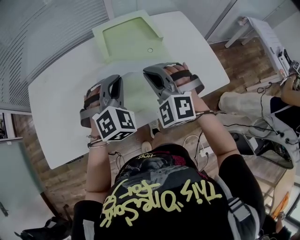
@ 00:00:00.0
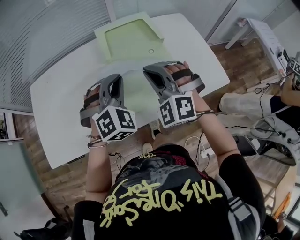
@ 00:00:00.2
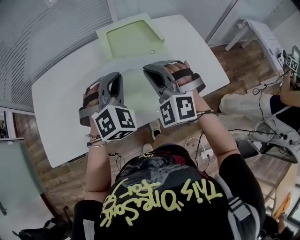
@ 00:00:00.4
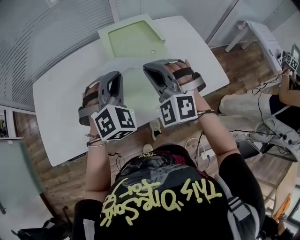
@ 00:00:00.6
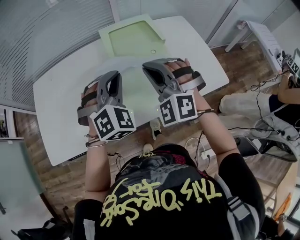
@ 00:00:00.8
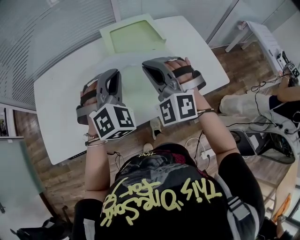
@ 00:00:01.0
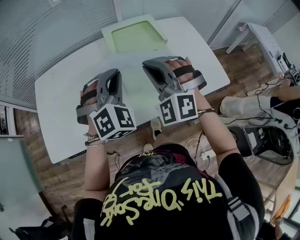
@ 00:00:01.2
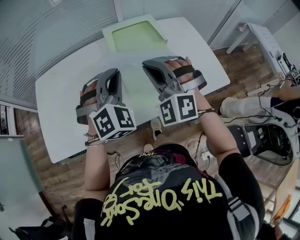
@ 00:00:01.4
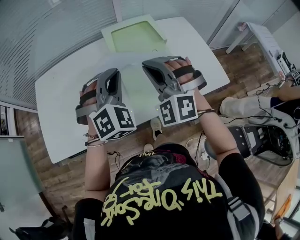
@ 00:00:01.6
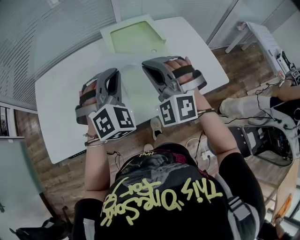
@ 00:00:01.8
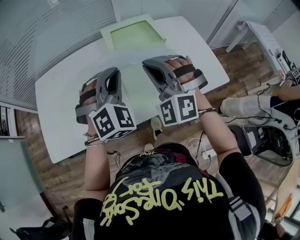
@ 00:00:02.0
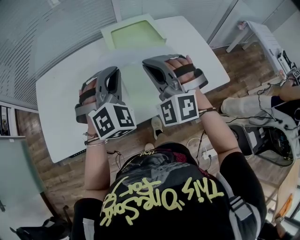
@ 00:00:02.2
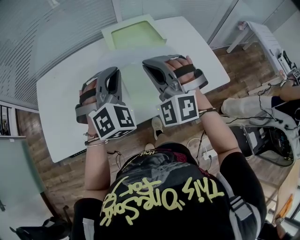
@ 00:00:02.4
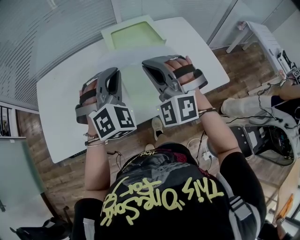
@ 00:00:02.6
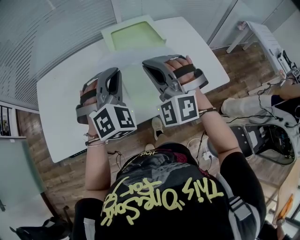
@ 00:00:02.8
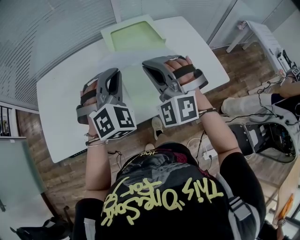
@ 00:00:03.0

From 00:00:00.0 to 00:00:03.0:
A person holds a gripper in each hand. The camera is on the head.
From 00:00:00.0 to 00:00:01.6: The two grippers go about 5 cm upward.
From 00:00:01.6 to 00:00:03.0: Both grippers stay put.

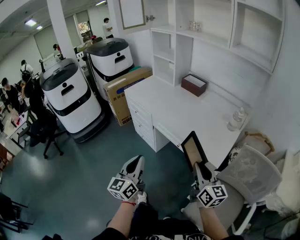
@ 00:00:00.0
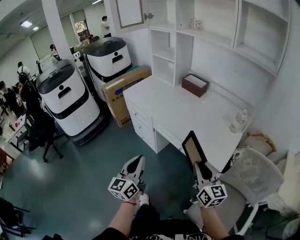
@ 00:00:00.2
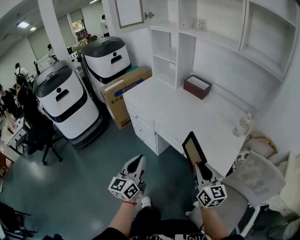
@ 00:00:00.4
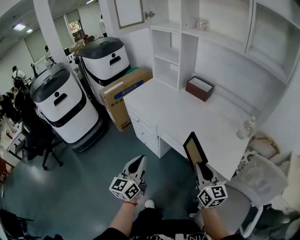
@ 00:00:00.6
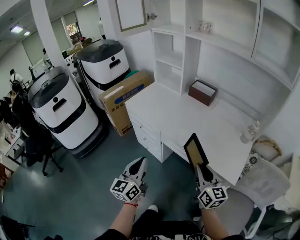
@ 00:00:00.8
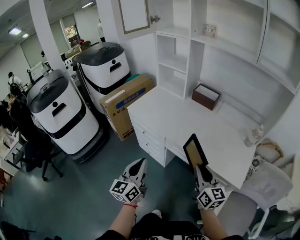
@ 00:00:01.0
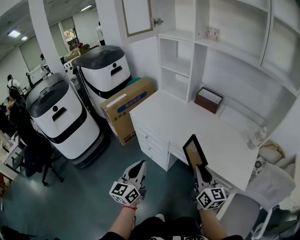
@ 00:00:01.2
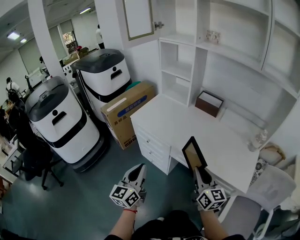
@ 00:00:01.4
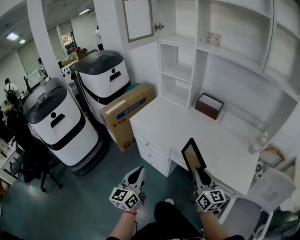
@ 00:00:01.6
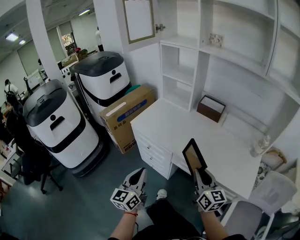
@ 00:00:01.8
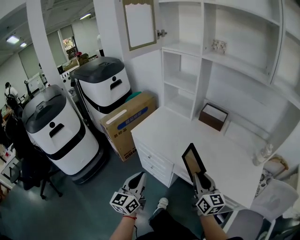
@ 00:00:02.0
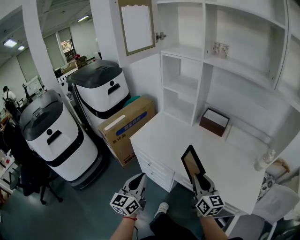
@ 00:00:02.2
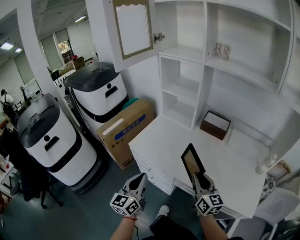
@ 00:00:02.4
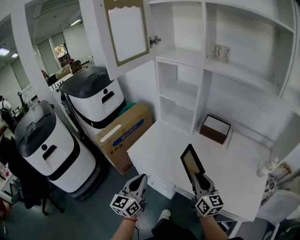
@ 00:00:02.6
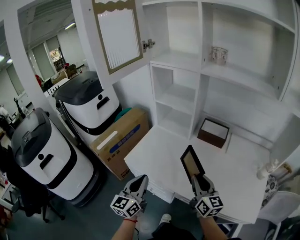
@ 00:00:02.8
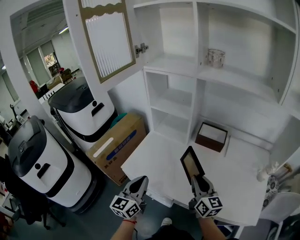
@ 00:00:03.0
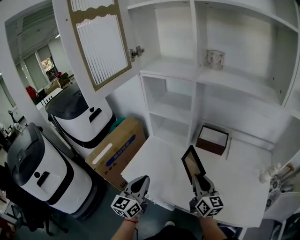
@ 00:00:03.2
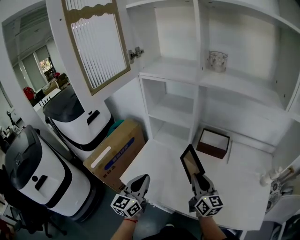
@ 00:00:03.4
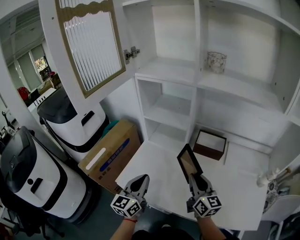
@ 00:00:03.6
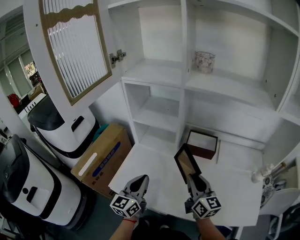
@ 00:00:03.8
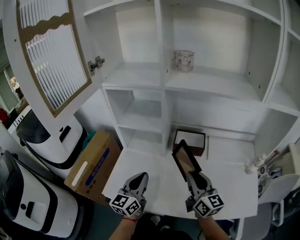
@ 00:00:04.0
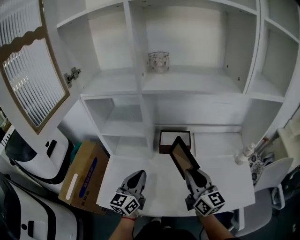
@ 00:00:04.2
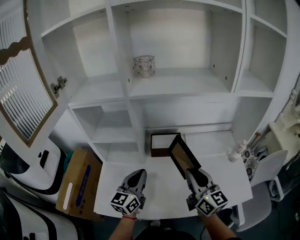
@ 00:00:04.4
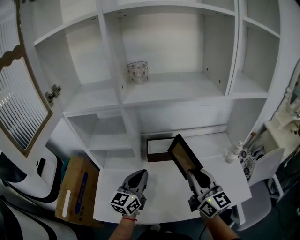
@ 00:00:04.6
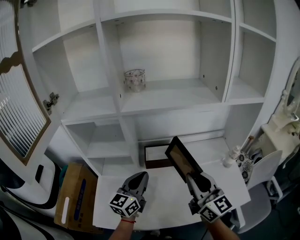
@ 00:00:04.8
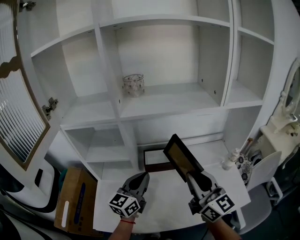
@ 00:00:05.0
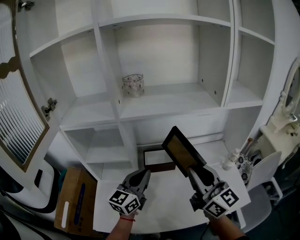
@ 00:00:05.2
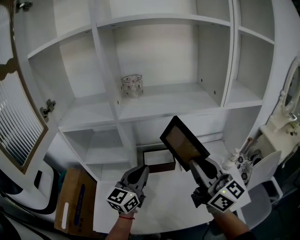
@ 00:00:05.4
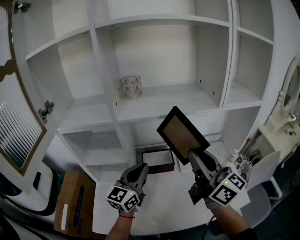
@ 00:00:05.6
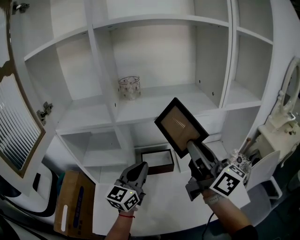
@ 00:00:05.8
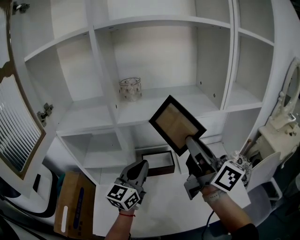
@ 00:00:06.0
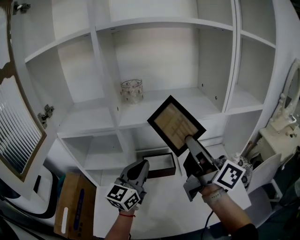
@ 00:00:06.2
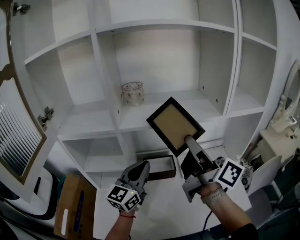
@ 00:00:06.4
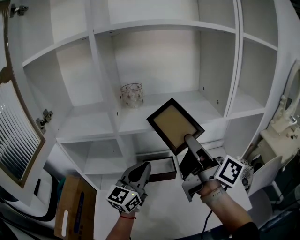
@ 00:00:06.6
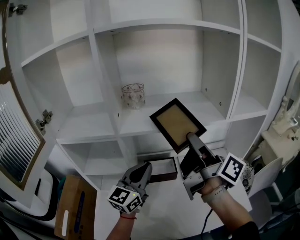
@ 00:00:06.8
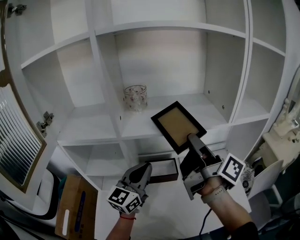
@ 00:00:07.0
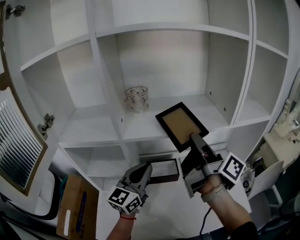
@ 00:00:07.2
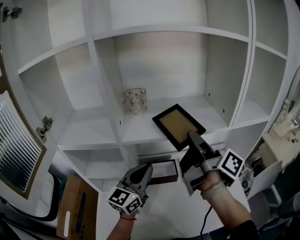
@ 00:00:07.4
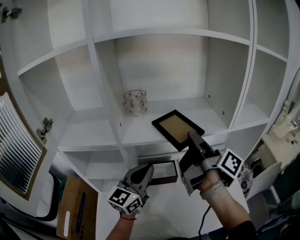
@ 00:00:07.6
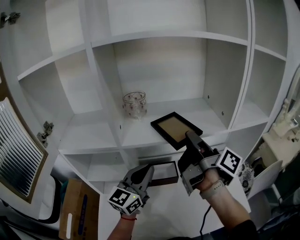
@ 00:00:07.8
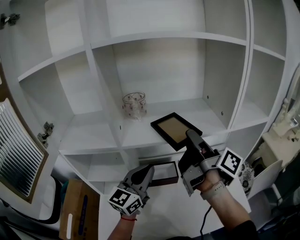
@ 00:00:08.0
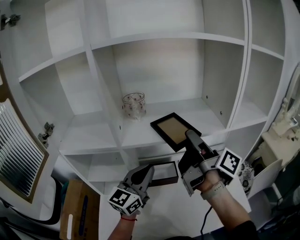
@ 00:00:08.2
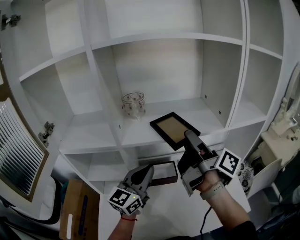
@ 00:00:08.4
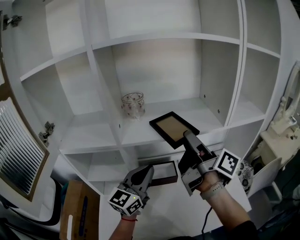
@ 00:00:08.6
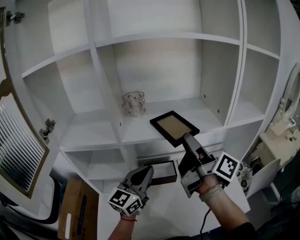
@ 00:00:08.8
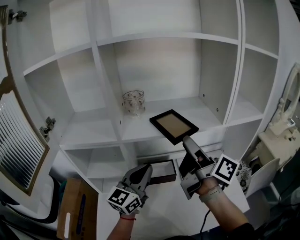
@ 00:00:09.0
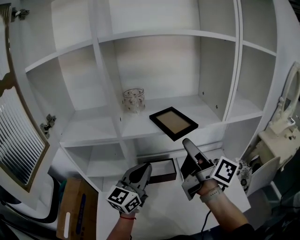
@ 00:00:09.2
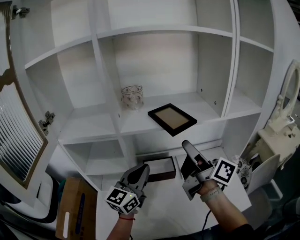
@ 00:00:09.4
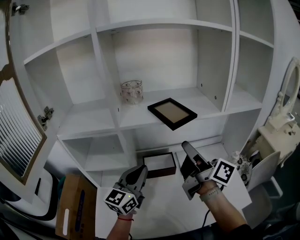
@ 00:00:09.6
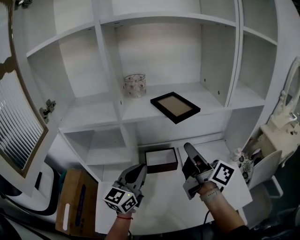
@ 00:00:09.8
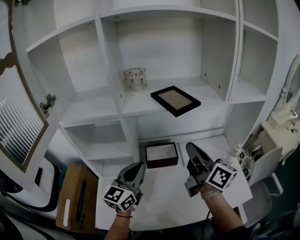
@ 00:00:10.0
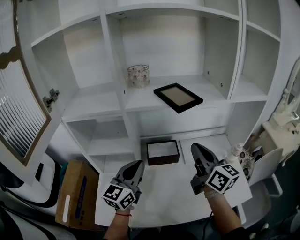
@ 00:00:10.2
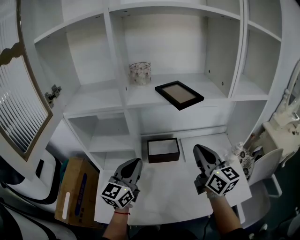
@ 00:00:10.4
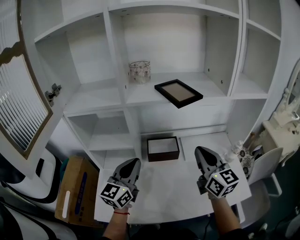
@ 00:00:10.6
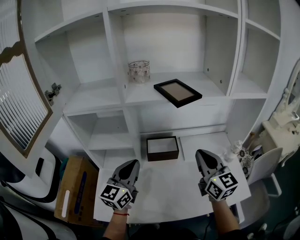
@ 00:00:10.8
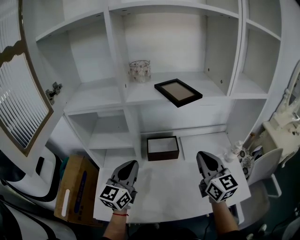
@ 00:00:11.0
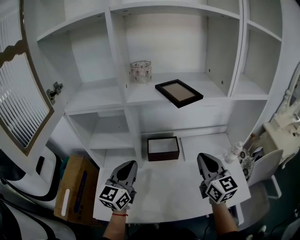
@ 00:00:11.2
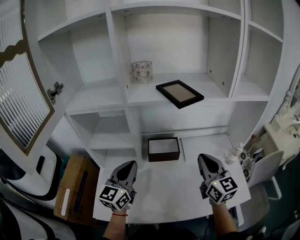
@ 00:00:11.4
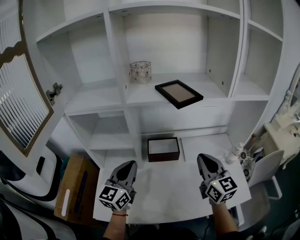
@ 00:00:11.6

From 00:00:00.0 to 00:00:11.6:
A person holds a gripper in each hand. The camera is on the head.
From 00:00:00.0 to 00:00:01.4: The two grippers go about 30 cm forward and to the left.
From 00:00:01.4 to 00:00:02.8: The grippers both shift forward by about 25 cm.
From 00:00:02.8 to 00:00:04.4: The left gripper shifts by roughly 25 cm, and rotates approximately 30 degrees, while the right gripper ends up roughly 15 cm from where it was, and turns by some 30 degrees.
From 00:00:04.4 to 00:00:05.8: The left gripper goes some 15 cm upward and forward, while the right gripper goes roughly 20 cm upward, and changes its angle by about 20 degrees.
From 00:00:05.8 to 00:00:07.2: The right gripper travels forward by roughly 10 cm, and rotates around the line of its fingers by about 40 degrees, clockwise from behind; the left gripper shifts by approximately 5 cm.
From 00:00:07.2 to 00:00:08.8: The right gripper opens.
From 00:00:08.8 to 00:00:10.2: Both grippers move downward and backward, some 10 cm. The right gripper rotates around the line of its fingers by about 40 degrees, counterclockwise from behind, and closes.
From 00:00:10.2 to 00:00:11.6: The right gripper heads downward, covering about 5 cm, and changes its angle by about 20 degrees.

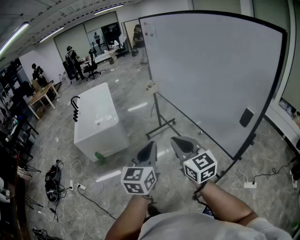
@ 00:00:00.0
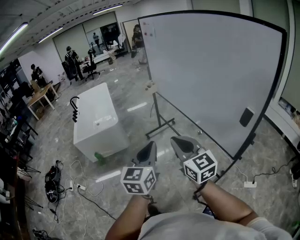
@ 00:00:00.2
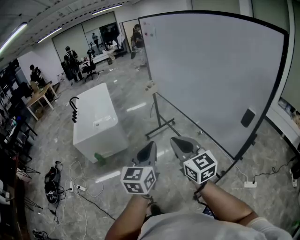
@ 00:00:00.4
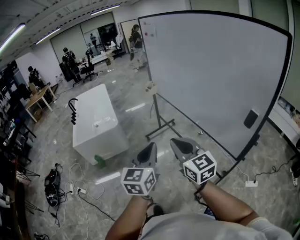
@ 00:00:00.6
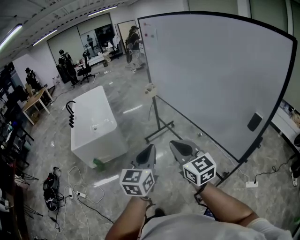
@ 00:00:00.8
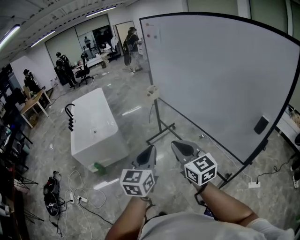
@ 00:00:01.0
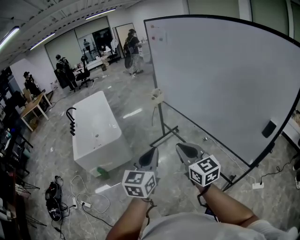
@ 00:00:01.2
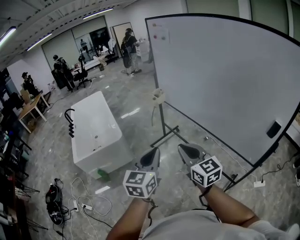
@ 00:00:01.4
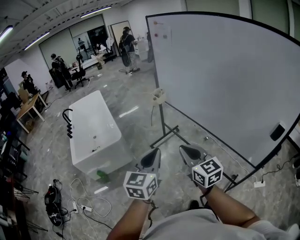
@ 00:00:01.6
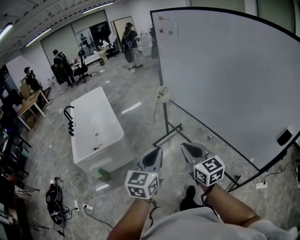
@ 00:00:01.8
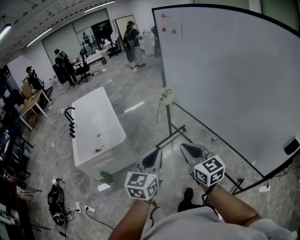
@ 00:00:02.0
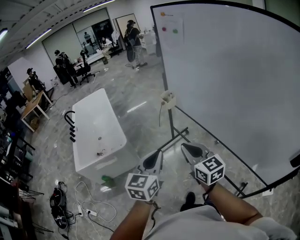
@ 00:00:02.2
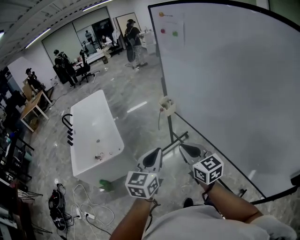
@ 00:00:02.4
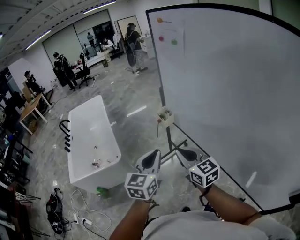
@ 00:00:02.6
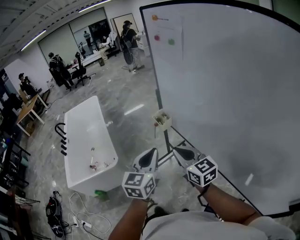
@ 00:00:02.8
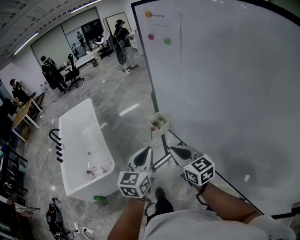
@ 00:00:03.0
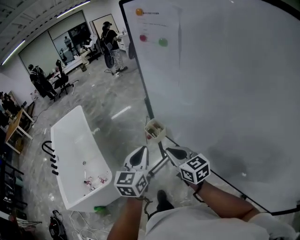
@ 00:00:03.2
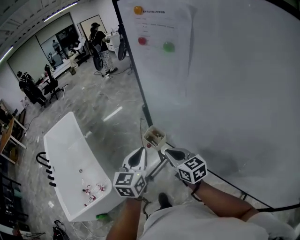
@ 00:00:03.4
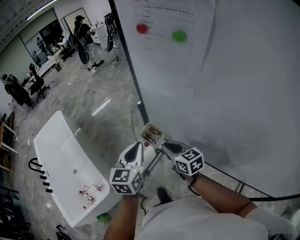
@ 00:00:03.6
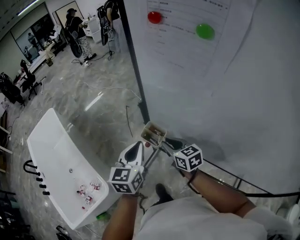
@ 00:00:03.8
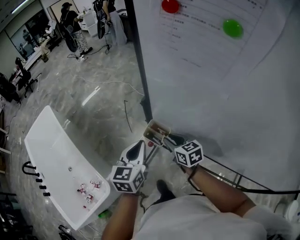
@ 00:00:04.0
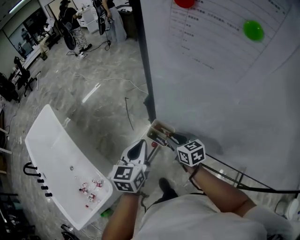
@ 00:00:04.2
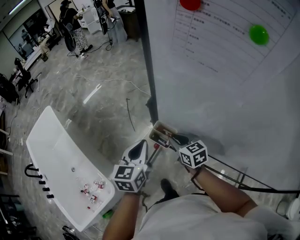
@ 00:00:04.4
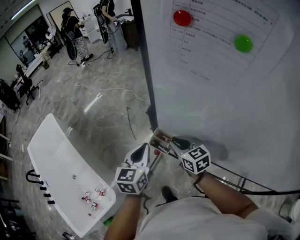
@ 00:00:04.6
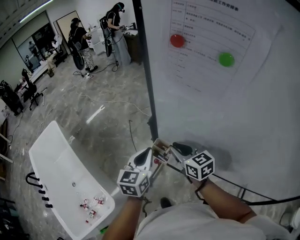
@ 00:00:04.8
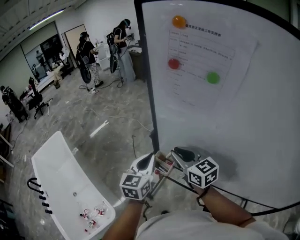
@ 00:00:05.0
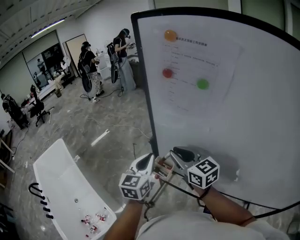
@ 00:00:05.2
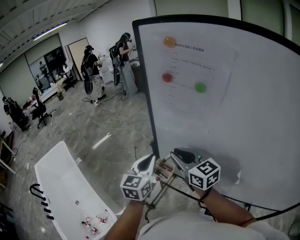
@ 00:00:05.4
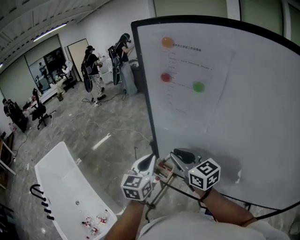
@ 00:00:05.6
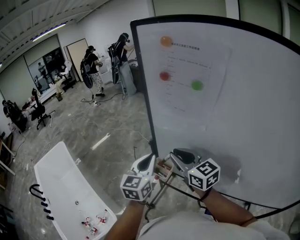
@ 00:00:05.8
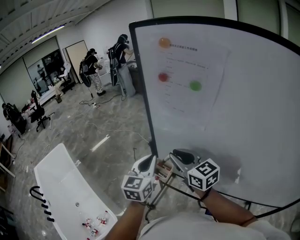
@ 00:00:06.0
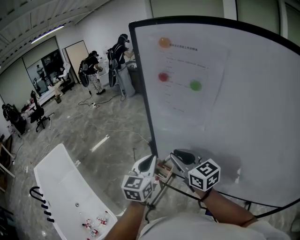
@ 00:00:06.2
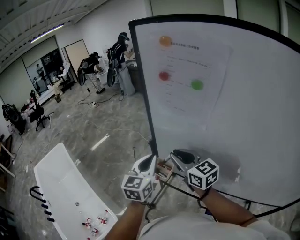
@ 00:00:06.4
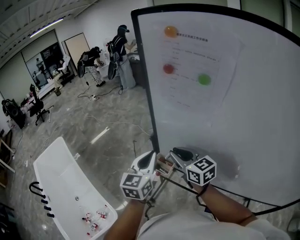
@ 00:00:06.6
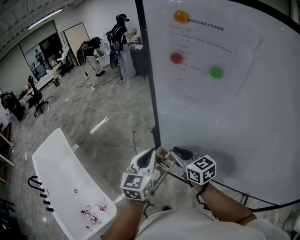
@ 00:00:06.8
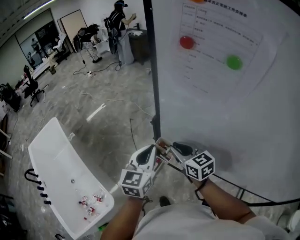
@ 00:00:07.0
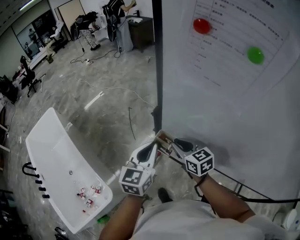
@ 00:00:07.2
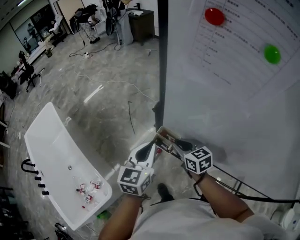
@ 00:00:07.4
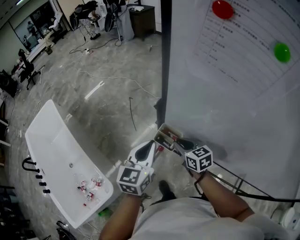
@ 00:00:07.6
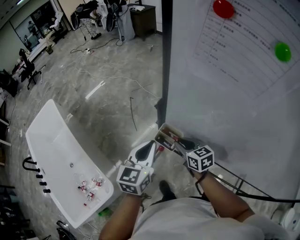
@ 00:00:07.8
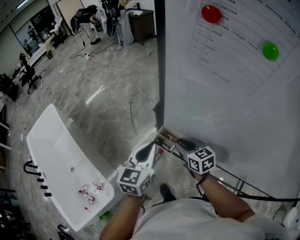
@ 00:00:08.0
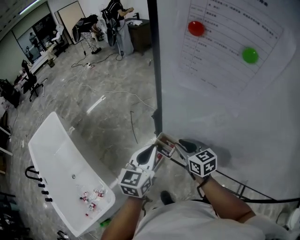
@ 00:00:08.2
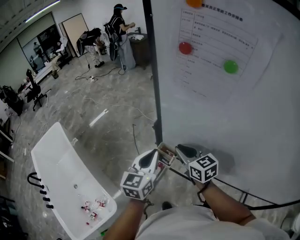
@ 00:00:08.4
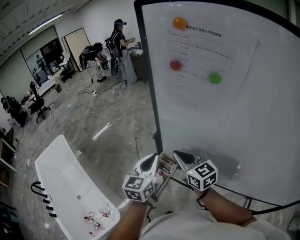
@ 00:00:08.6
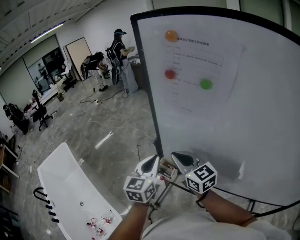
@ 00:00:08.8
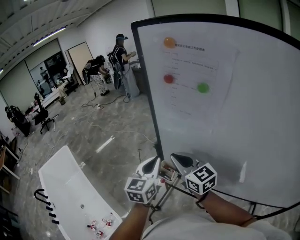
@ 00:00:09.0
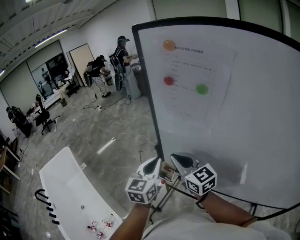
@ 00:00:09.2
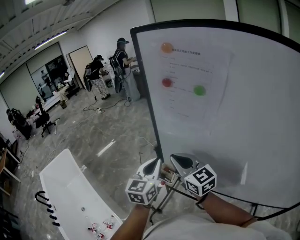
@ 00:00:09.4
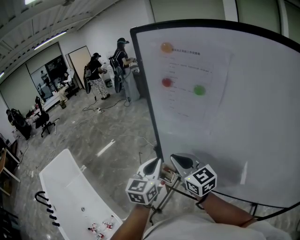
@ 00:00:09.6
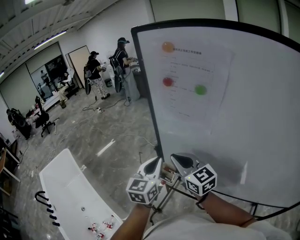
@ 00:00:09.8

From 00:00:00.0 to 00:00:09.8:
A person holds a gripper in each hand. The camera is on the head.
From 00:00:00.0 to 00:00:01.4: Both grippers travel together forward and to the left, roughly 25 cm.
From 00:00:01.4 to 00:00:02.8: Both grippers are carried forward, roughly 50 cm.
From 00:00:02.8 to 00:00:04.2: The right gripper moves forward and downward, about 40 cm, and changes its angle by approximately 40 degrees. The left gripper shifts about 40 cm forward, and swivels about 20 degrees.
From 00:00:04.2 to 00:00:05.6: The right gripper moves upward, roughly 25 cm, and rotates roughly 30 degrees, while the left gripper shifts approximately 15 cm upward.
From 00:00:05.6 to 00:00:07.0: The left gripper is displaced downward by roughly 5 cm; the right gripper heads downward, covering roughly 15 cm.
From 00:00:07.0 to 00:00:08.4: The right gripper travels downward and back again, roughly 15 cm each way.
From 00:00:08.4 to 00:00:09.8: The right gripper heads upward, covering some 15 cm. The left gripper travels upward by about 10 cm.
